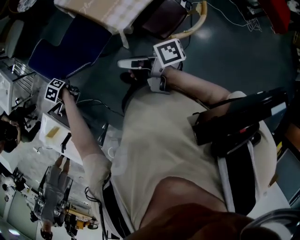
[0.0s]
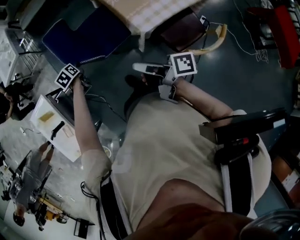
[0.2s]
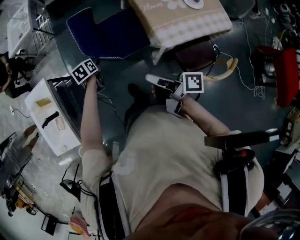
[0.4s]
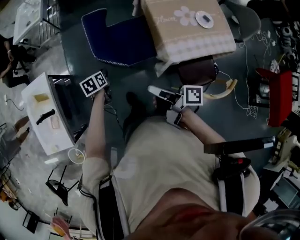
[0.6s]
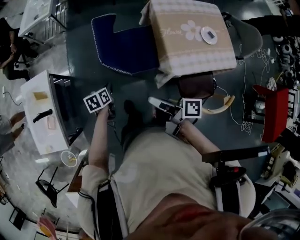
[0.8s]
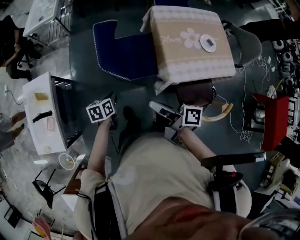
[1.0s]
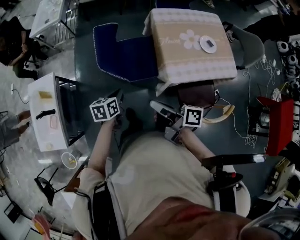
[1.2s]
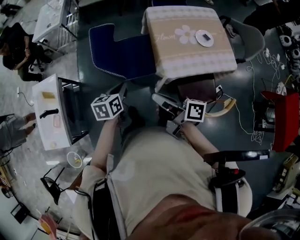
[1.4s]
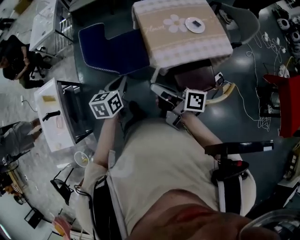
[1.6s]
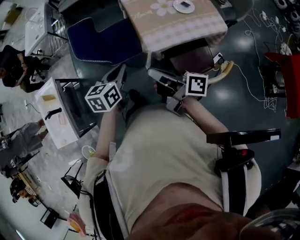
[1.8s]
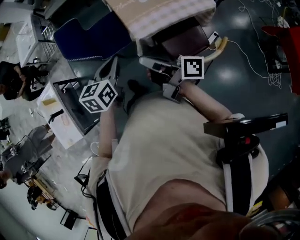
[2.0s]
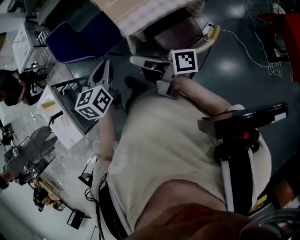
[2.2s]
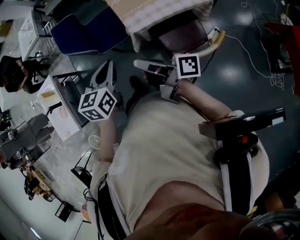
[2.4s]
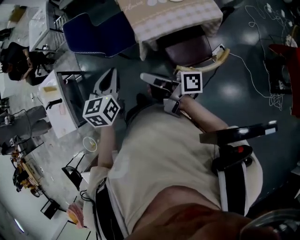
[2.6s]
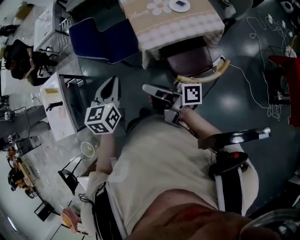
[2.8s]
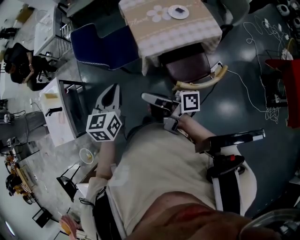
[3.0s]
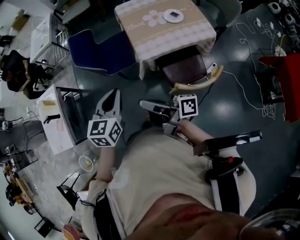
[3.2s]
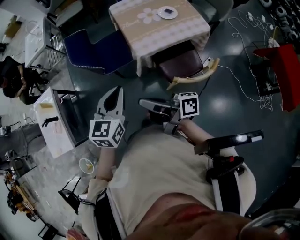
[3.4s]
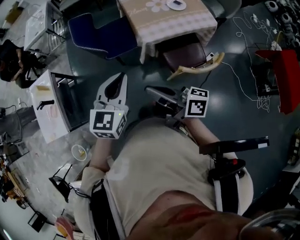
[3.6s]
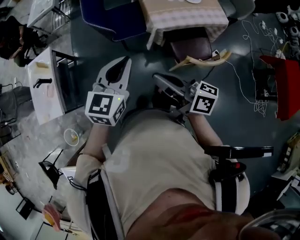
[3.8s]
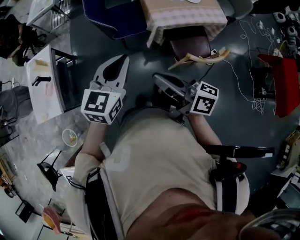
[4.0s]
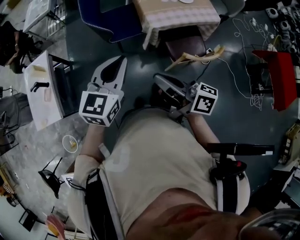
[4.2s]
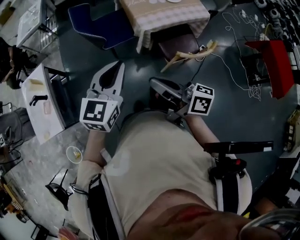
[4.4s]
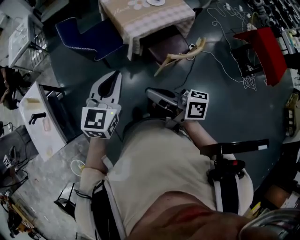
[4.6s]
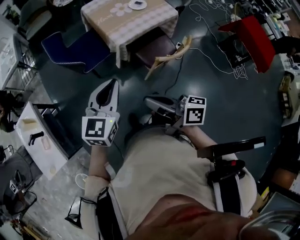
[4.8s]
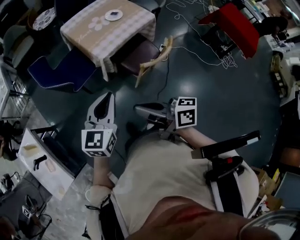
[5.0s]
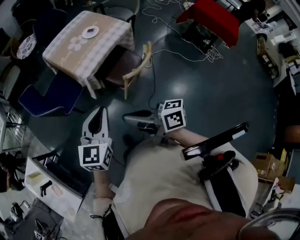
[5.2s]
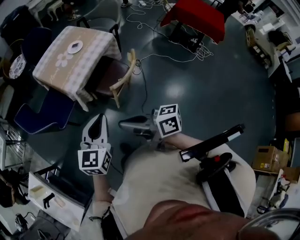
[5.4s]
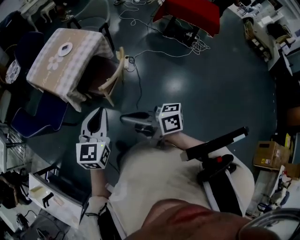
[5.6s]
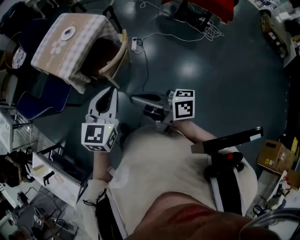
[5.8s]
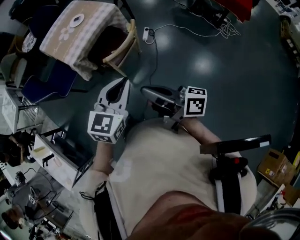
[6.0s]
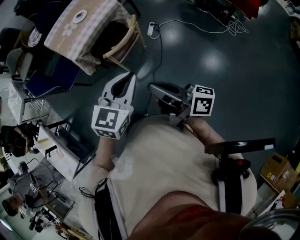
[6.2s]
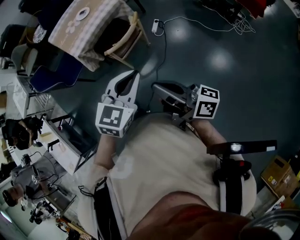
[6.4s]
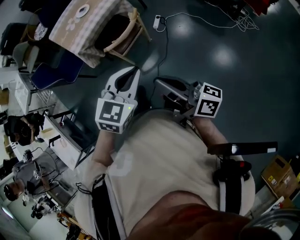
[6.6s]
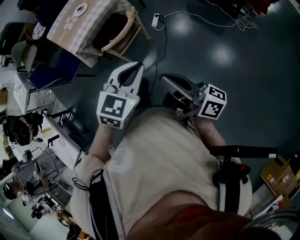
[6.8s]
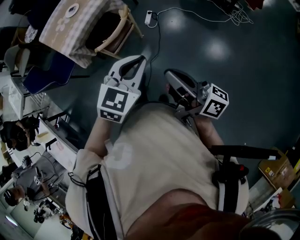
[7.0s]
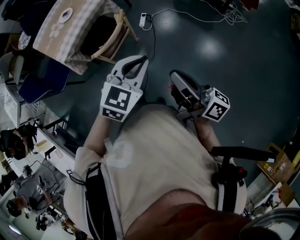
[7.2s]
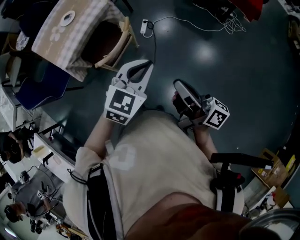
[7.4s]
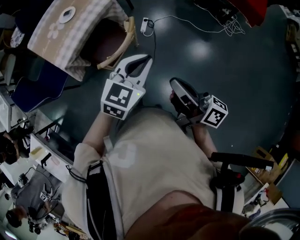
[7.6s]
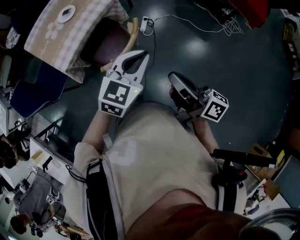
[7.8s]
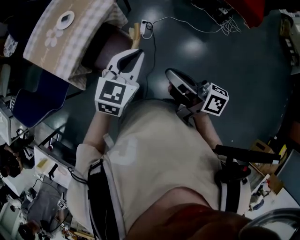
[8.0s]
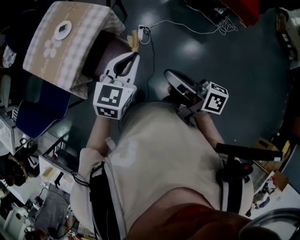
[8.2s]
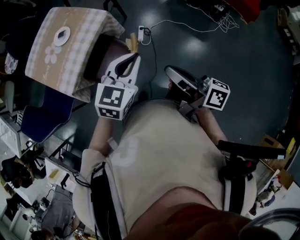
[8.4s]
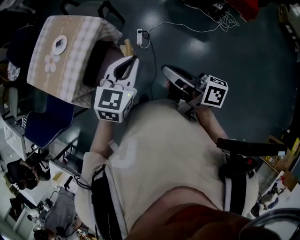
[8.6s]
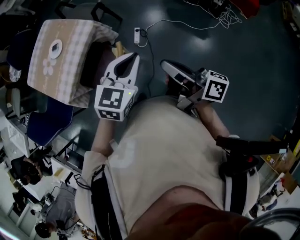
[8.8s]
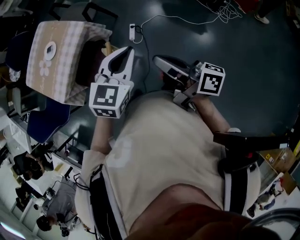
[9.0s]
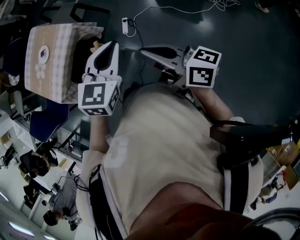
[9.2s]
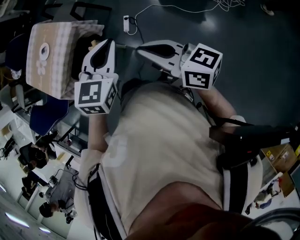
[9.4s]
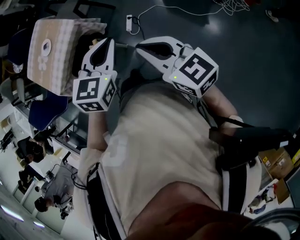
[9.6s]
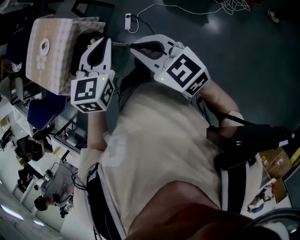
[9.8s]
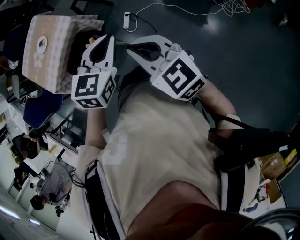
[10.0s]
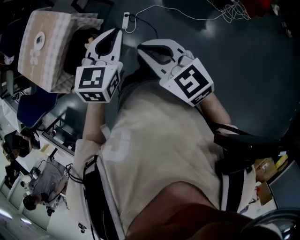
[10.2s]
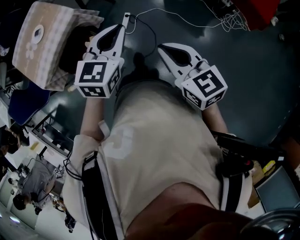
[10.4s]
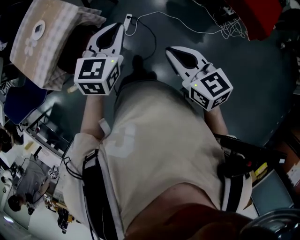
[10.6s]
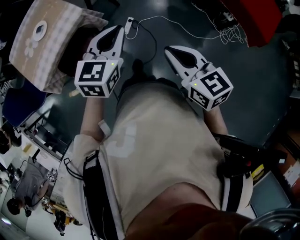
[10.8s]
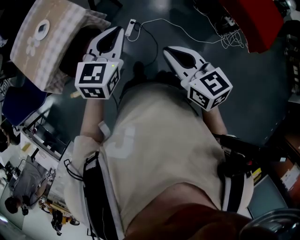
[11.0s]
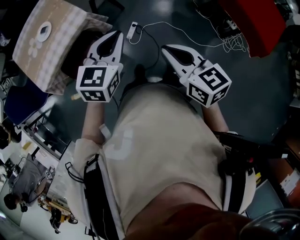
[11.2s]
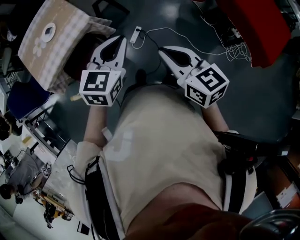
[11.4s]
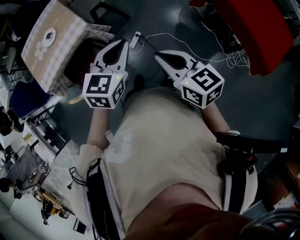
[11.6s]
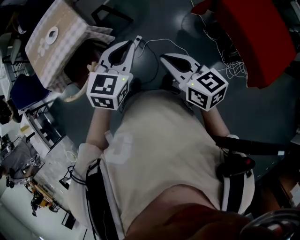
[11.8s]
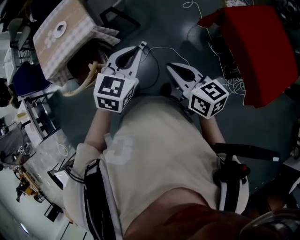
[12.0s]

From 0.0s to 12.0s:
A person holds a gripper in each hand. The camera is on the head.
From 0.0s to 1.6s: The left gripper moves about 30 cm, turns by approximately 30 degrees, and closes its fingers.
From 1.6s to 3.0s: The left gripper changes place by about 15 cm.
From 3.0s to 4.4s: The left gripper shifts by approximately 15 cm, and rotates approximately 30 degrees.
From 4.4s to 6.0s: The left gripper changes place by approximately 40 cm, and changes its angle by roughly 40 degrees.
From 6.0s to 7.6s: The left gripper ends up some 20 cm from where it was.
From 7.6s to 9.0s: The left gripper moves roughly 20 cm.
From 9.0s to 10.4s: The left gripper changes place by about 10 cm.
From 10.4s to 12.0s: The left gripper moves approximately 20 cm.

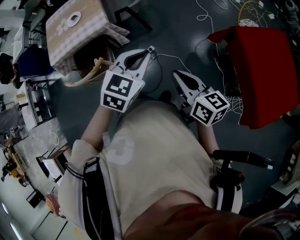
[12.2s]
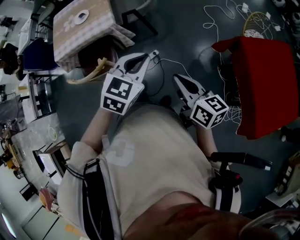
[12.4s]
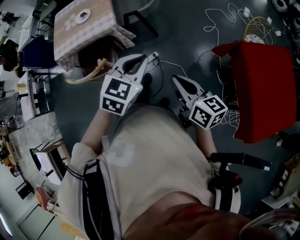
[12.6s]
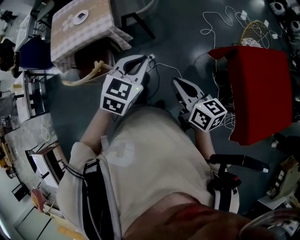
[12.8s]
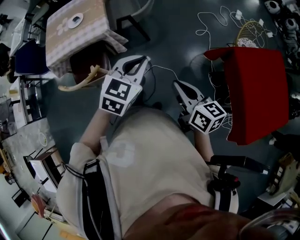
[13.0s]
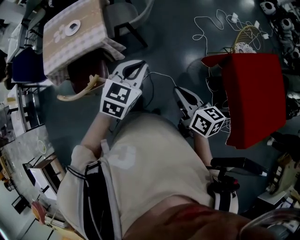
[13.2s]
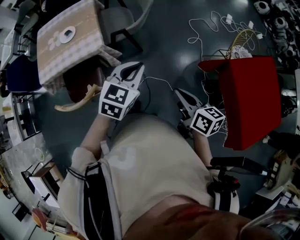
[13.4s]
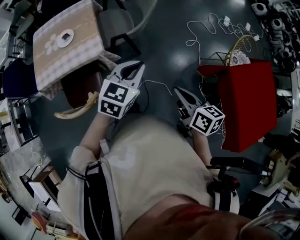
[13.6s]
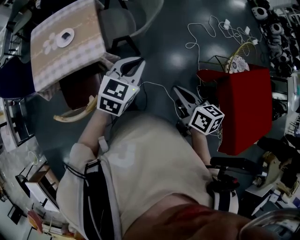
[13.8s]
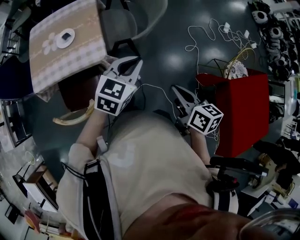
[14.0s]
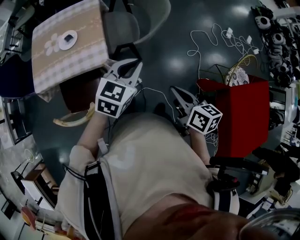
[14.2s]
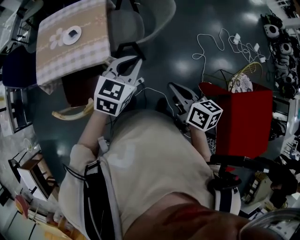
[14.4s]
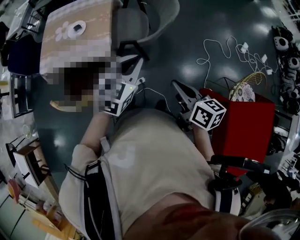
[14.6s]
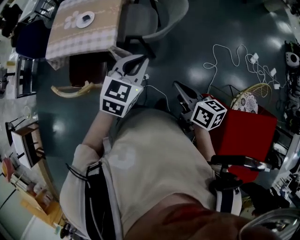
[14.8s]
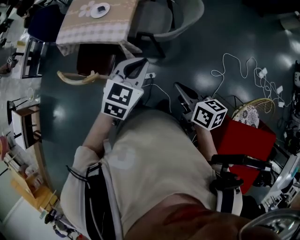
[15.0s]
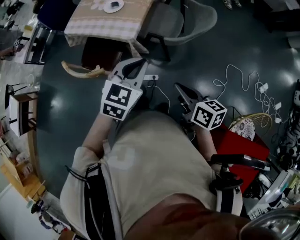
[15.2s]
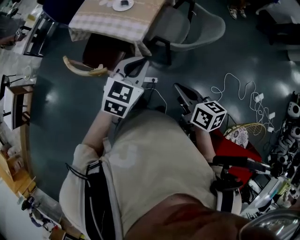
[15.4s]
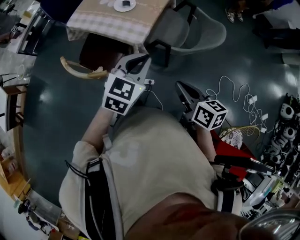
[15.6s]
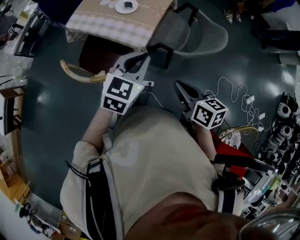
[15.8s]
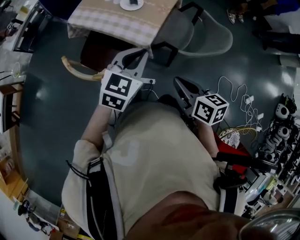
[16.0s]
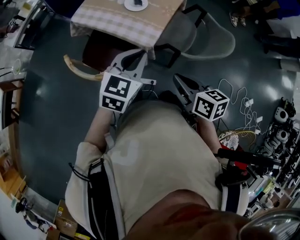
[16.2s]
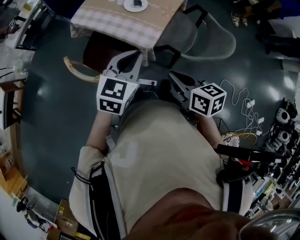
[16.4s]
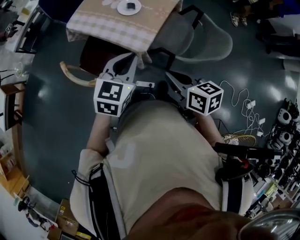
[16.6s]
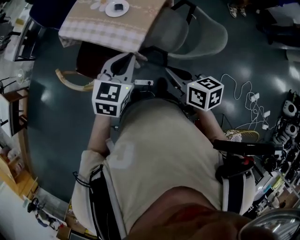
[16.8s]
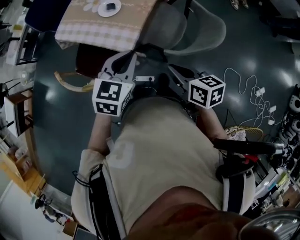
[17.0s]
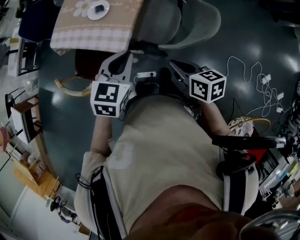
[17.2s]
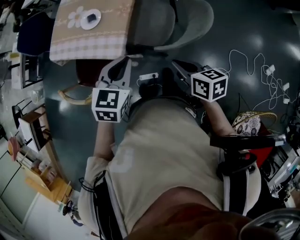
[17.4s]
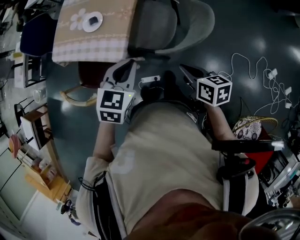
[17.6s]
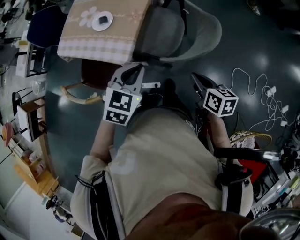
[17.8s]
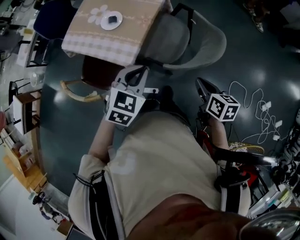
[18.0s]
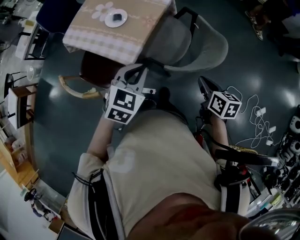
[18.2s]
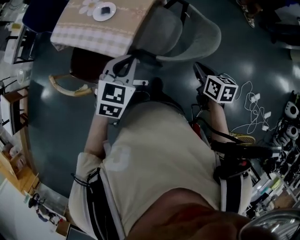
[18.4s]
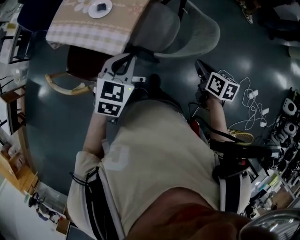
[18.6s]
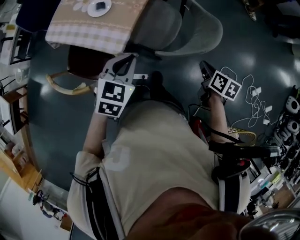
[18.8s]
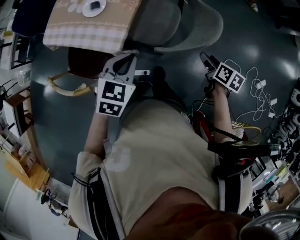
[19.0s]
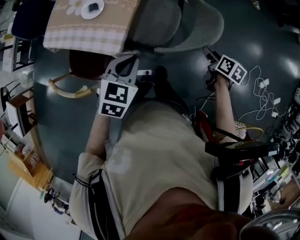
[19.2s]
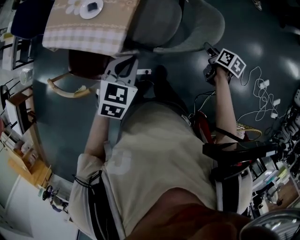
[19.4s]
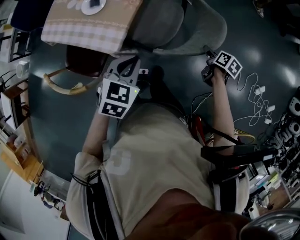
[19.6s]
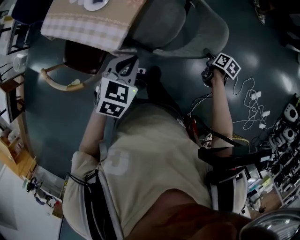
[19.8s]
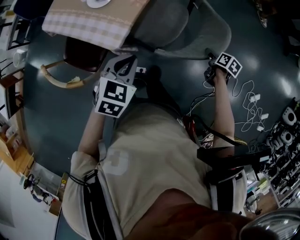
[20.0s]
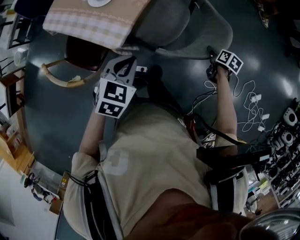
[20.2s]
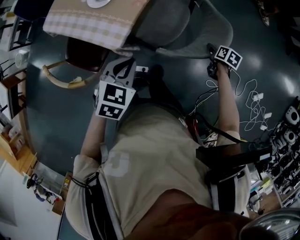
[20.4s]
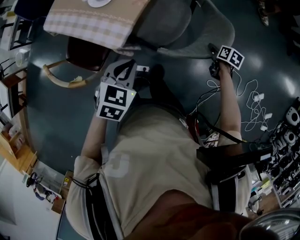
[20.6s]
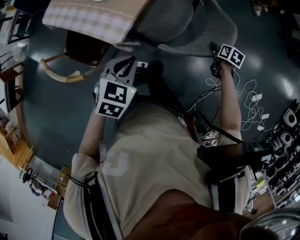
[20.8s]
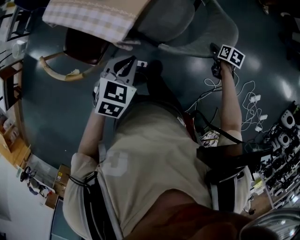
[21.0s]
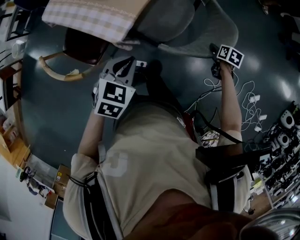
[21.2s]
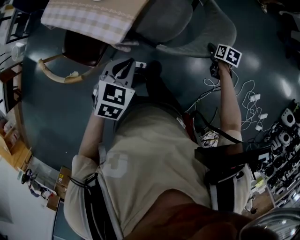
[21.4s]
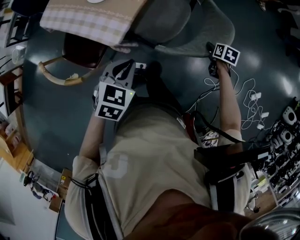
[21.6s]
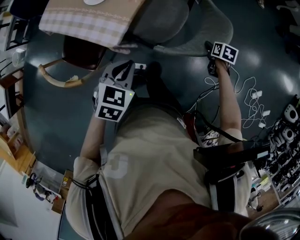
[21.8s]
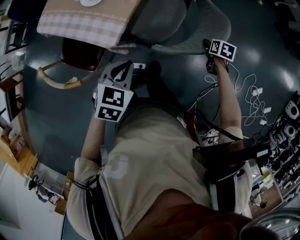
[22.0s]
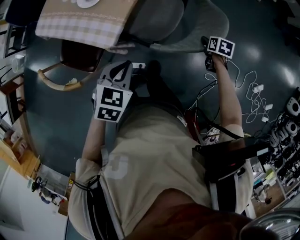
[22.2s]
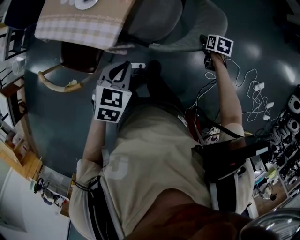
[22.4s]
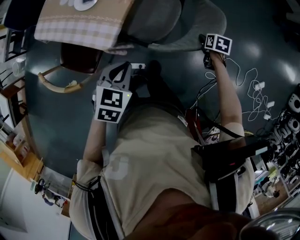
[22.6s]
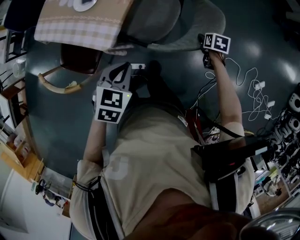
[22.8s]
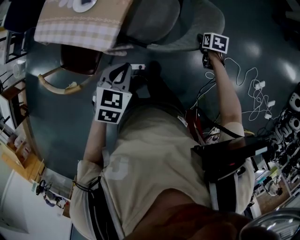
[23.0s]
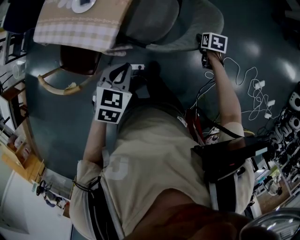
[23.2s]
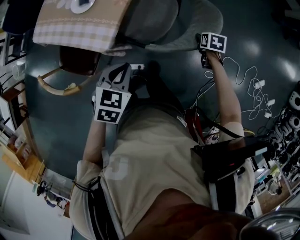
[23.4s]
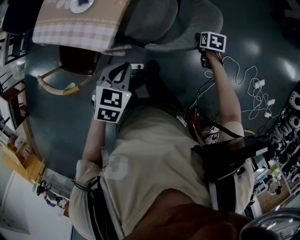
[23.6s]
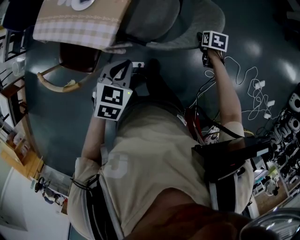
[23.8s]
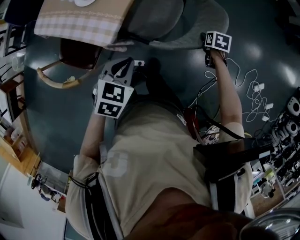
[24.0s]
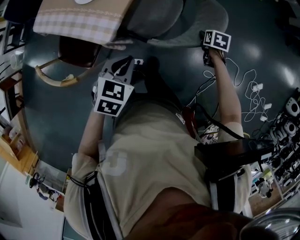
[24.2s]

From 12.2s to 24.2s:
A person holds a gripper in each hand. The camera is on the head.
From 12.2s to 13.8s: The left gripper shifts by some 25 cm.
From 13.8s to 15.2s: The left gripper changes its angle by about 40 degrees.
From 15.2s to 16.6s: The left gripper ends up some 20 cm from where it was.
From 16.6s to 18.2s: The left gripper ends up roughly 15 cm from where it was.
From 18.2s to 19.8s: The left gripper shifts roughly 5 cm downward.
